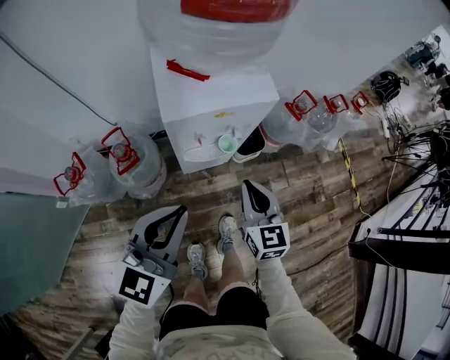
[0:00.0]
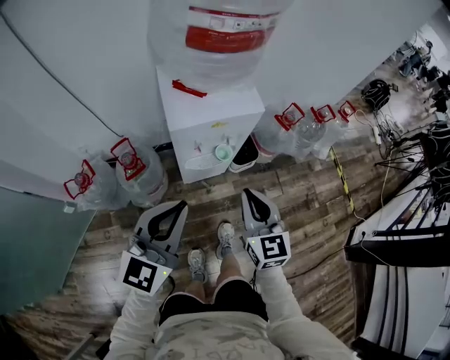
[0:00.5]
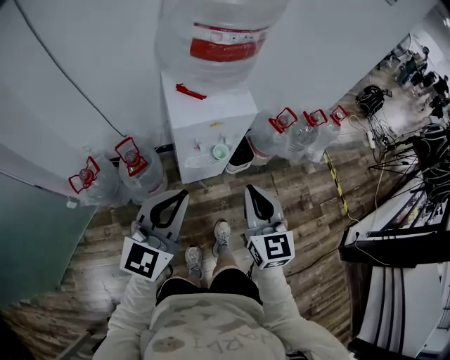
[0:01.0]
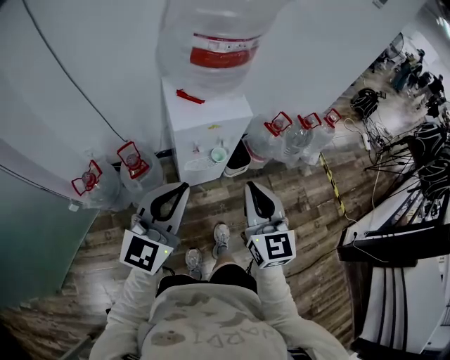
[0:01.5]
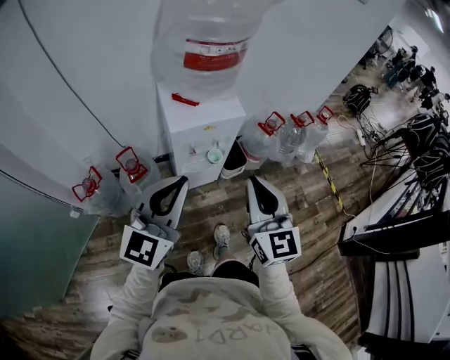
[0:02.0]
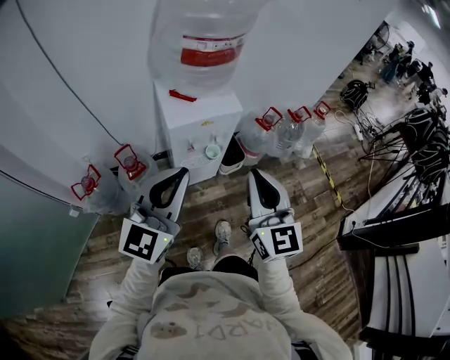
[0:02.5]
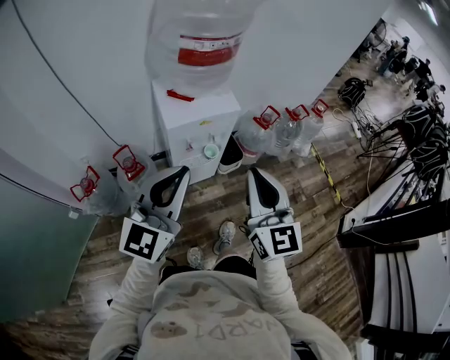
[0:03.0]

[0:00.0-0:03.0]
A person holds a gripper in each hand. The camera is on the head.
0:00.0 to 0:01.5: The right gripper moves upward and backward, approximately 25 cm. Meanwhile the left gripper moves upward, about 15 cm.
0:01.5 to 0:03.0: The right gripper travels upward by some 5 cm.

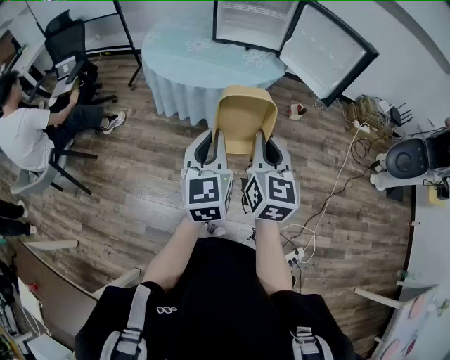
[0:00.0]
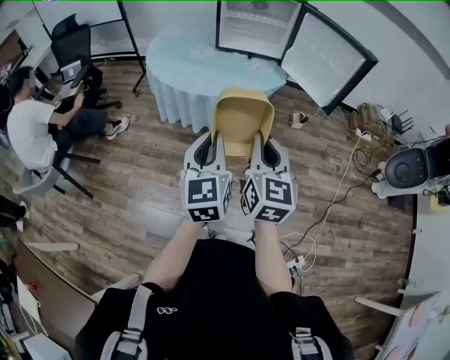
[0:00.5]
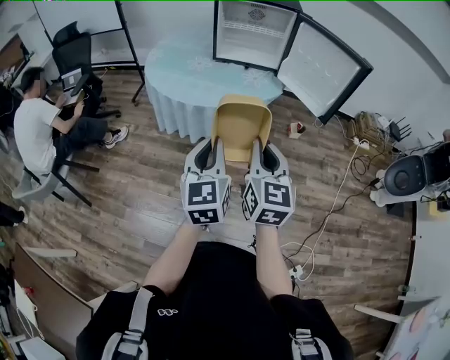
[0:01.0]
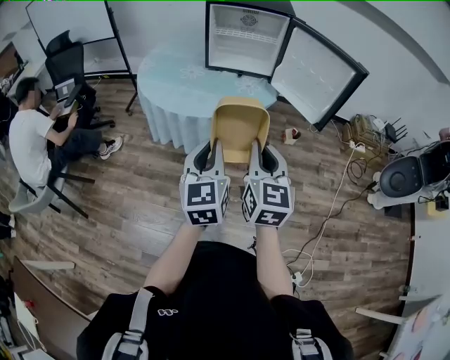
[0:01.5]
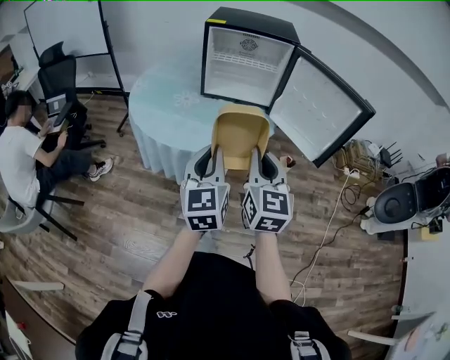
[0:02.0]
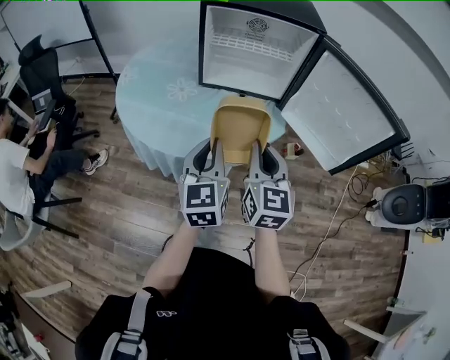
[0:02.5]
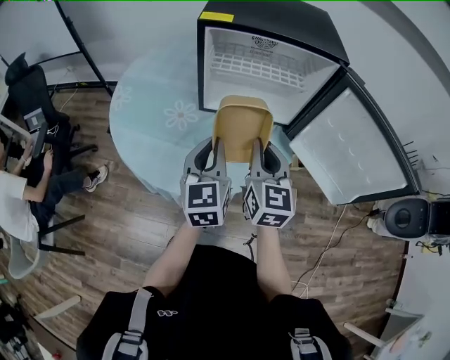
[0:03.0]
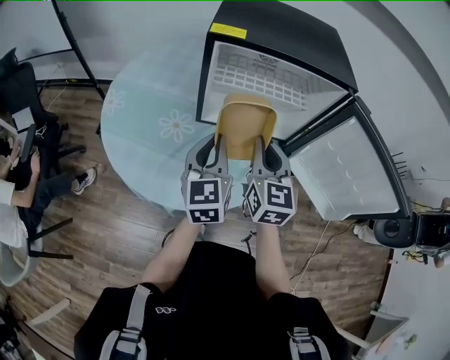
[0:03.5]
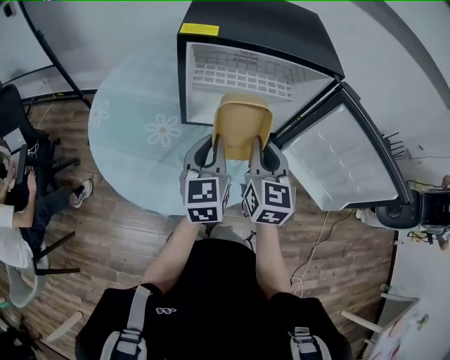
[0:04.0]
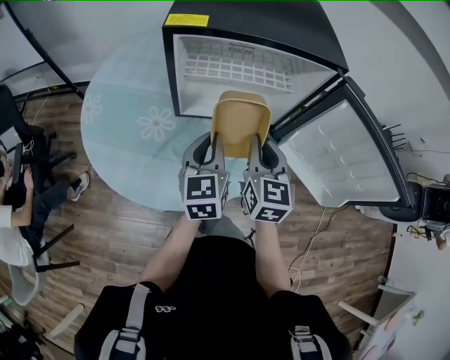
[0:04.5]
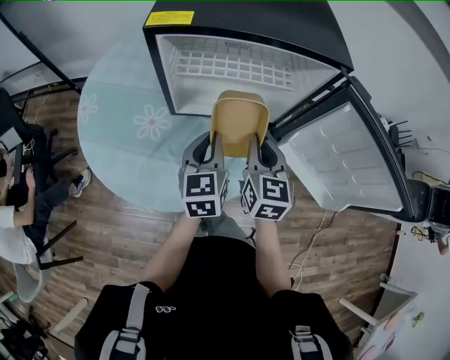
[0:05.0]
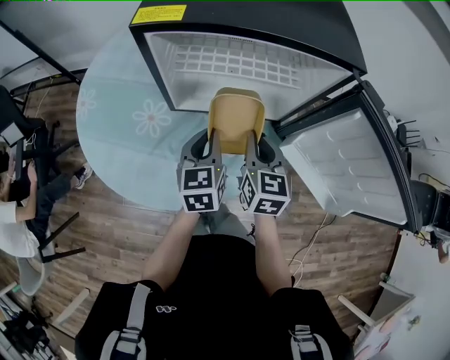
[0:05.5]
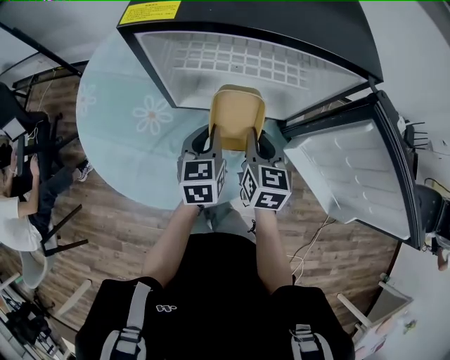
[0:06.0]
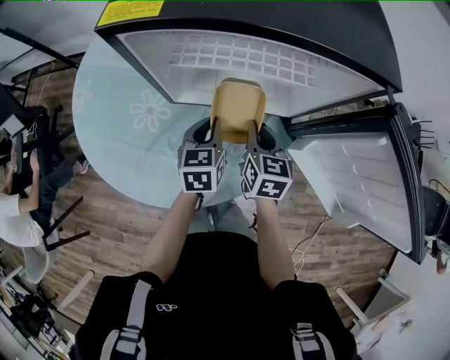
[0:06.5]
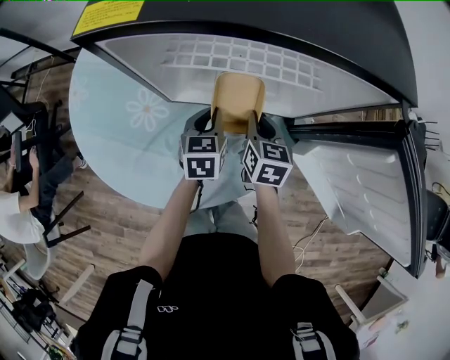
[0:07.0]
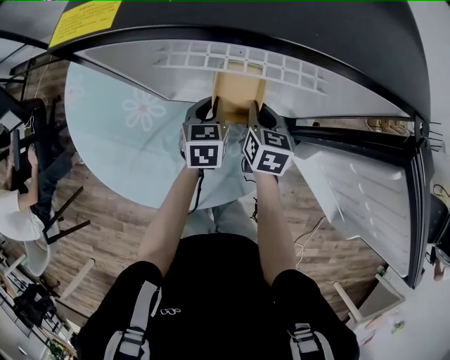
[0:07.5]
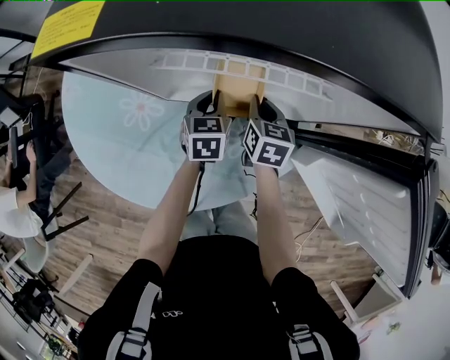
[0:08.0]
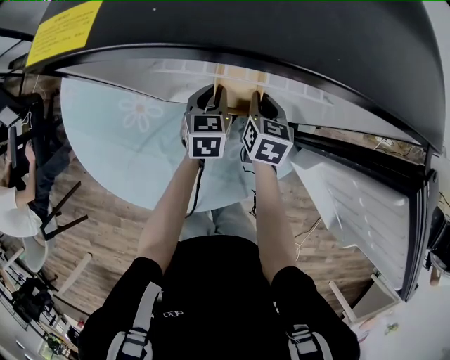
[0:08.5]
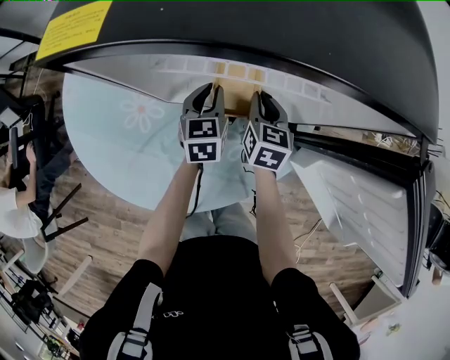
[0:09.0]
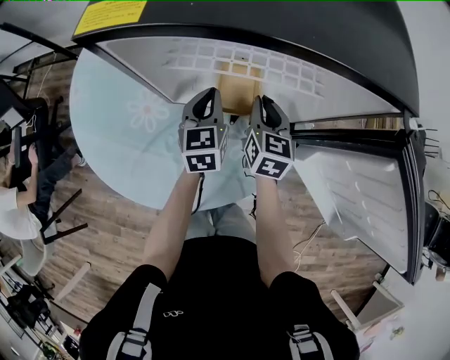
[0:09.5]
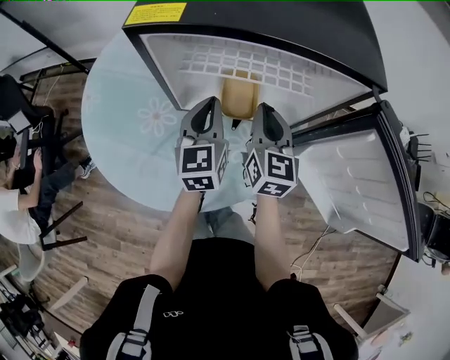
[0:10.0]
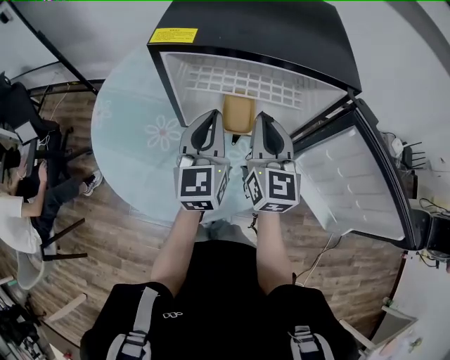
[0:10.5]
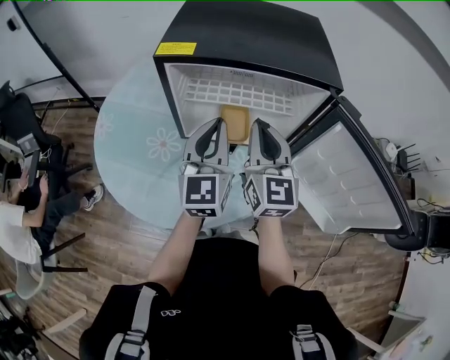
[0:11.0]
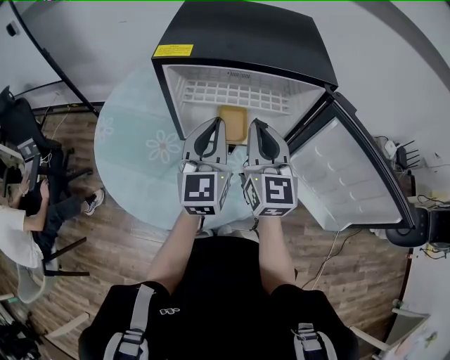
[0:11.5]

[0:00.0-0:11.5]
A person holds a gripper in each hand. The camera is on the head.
0:00.0 to 0:02.0: The two grippers go about 20 cm forward.
0:02.0 to 0:04.0: Both grippers travel together forward, some 40 cm.
0:04.0 to 0:06.0: The grippers both shift downward and forward by approximately 15 cm.
0:06.0 to 0:07.5: Both grippers travel together downward and forward, some 15 cm.
0:07.5 to 0:09.5: The two grippers go approximately 5 cm upward.
0:09.5 to 0:11.5: Both grippers move upward and backward, approximately 25 cm. The left gripper turns by some 30 degrees. Meanwhile the right gripper changes its angle by some 30 degrees.

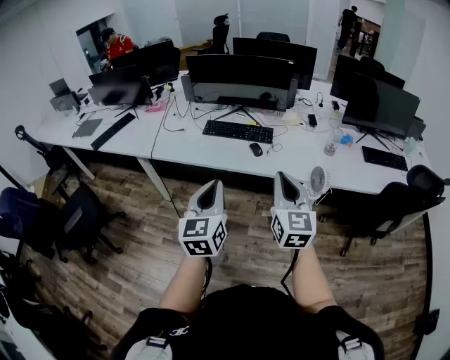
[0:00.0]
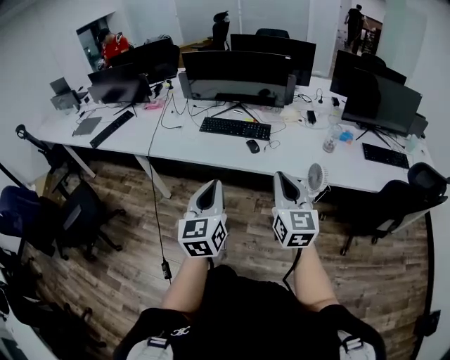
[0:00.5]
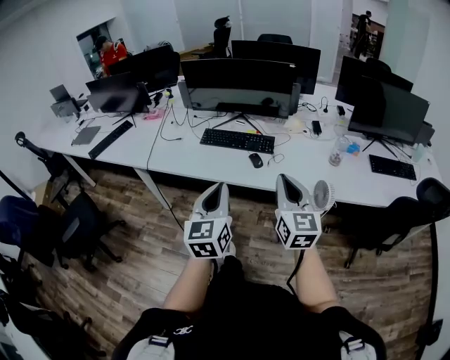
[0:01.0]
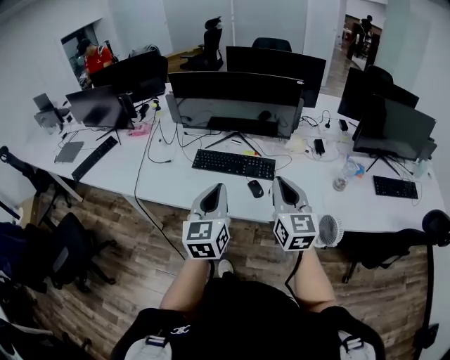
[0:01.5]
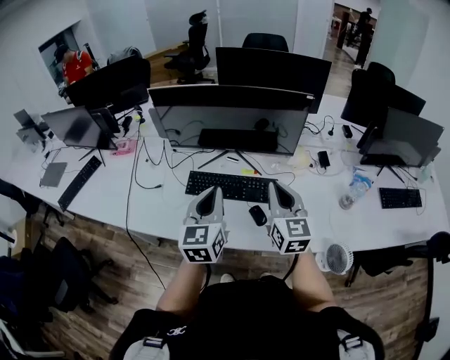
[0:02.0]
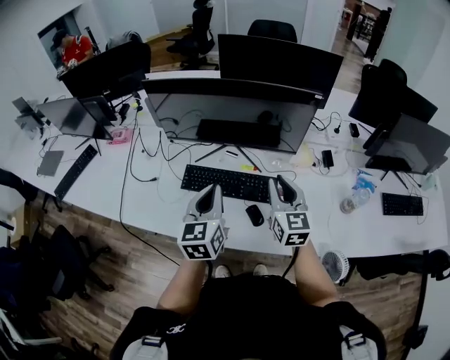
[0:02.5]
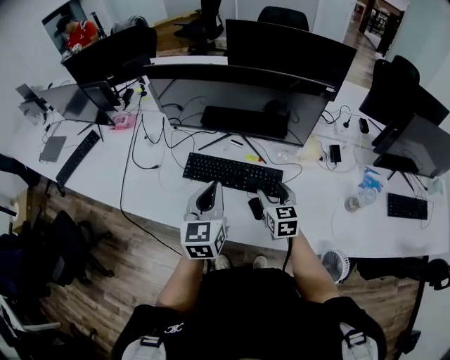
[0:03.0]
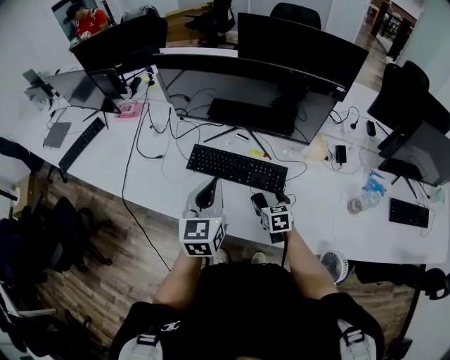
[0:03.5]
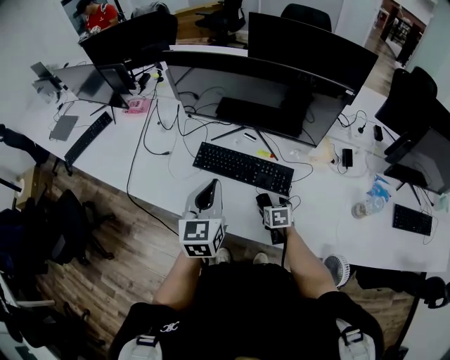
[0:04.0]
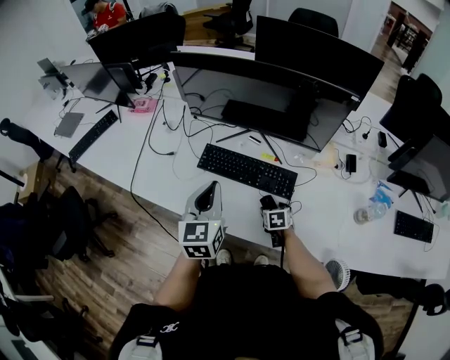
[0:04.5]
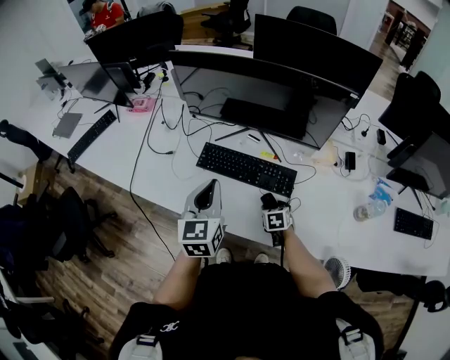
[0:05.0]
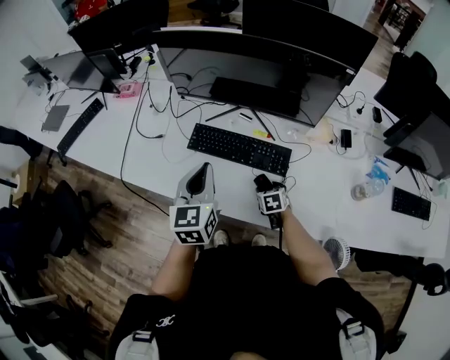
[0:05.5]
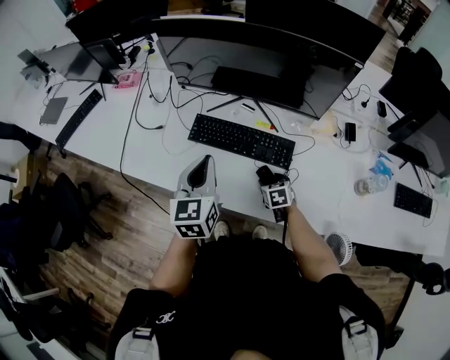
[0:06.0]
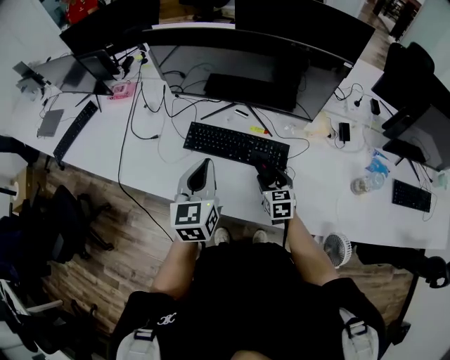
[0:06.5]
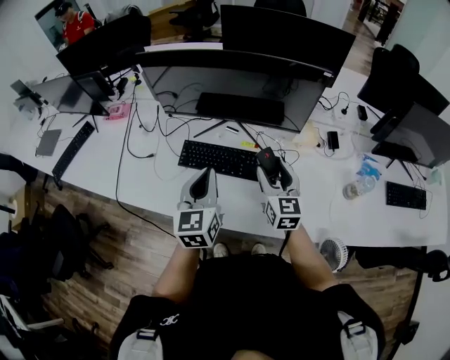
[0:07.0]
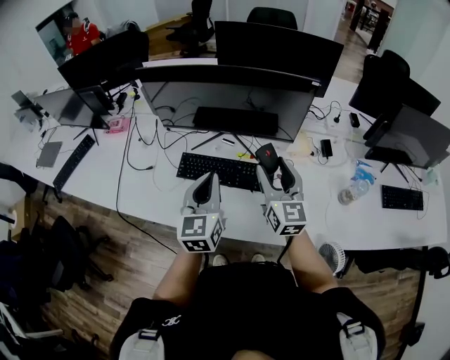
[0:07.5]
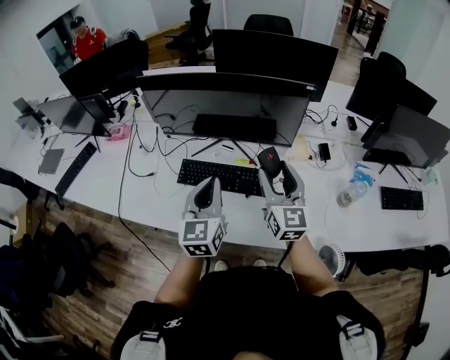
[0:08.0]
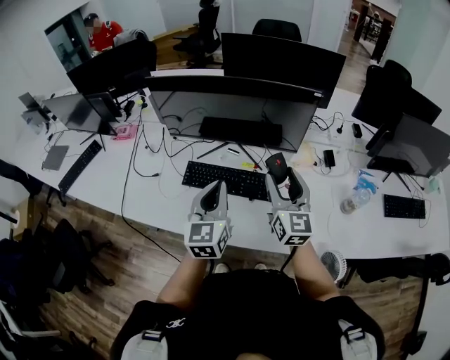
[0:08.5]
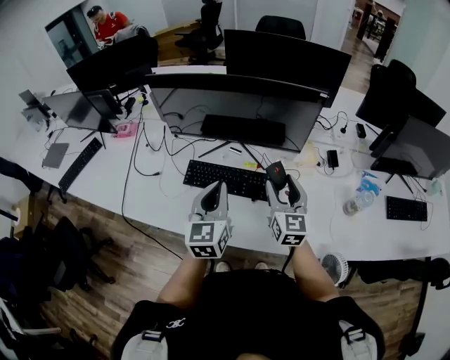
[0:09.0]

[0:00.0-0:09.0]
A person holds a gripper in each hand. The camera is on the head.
0:00.0 to 0:02.0: The pair of grippers is taken forward, approximately 40 cm.
0:02.0 to 0:04.5: The right gripper heads downward, covering roughly 35 cm, points its fingers about 50 degrees further downward, and opens up, while the left gripper travels downward by about 5 cm.
0:04.5 to 0:07.0: The right gripper shifts some 25 cm upward, and tilts its fingers approximately 50 degrees upward.

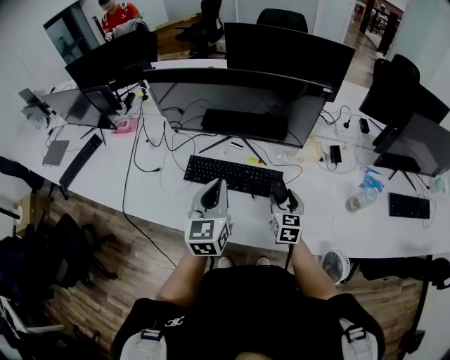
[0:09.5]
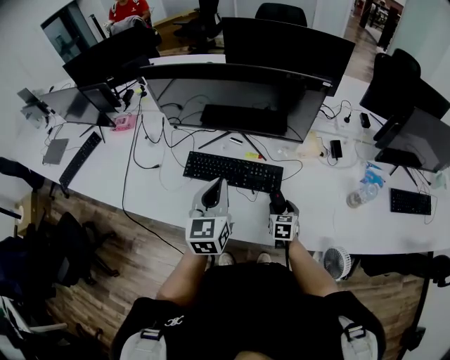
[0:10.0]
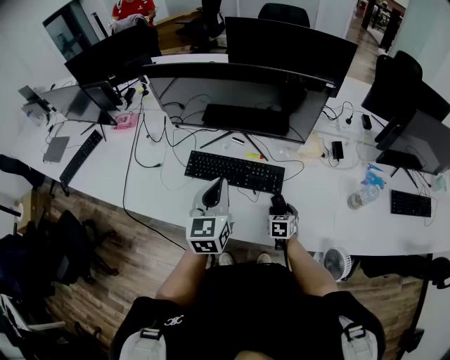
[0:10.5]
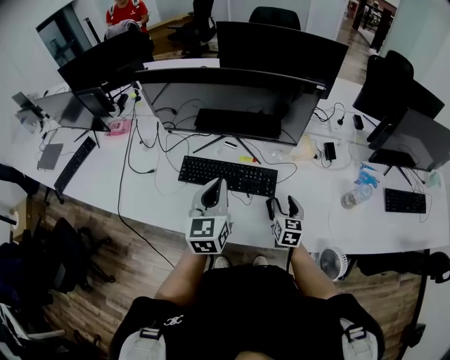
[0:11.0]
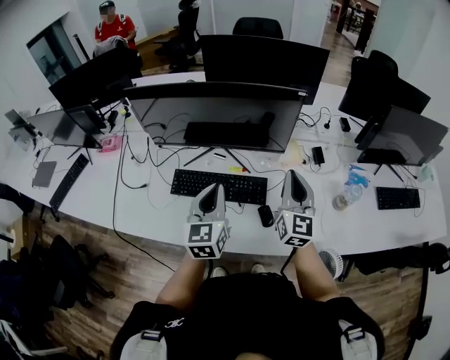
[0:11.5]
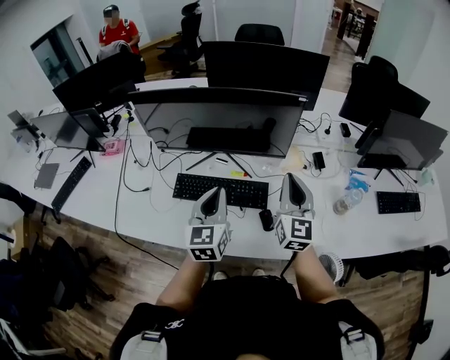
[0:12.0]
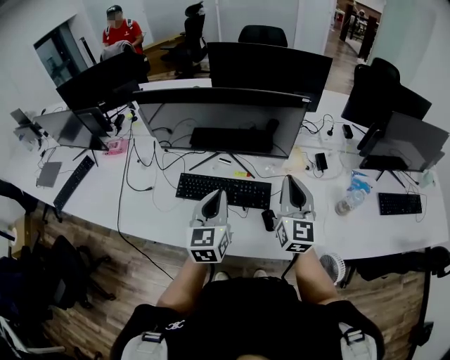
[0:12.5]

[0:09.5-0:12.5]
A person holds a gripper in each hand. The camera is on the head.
0:09.5 to 0:11.0: The right gripper moves roughly 15 cm downward and comes back.
0:11.0 to 0:12.5: The right gripper is displaced upward by approximately 25 cm, tips its fingers upward by some 30 degrees, and closes up.
